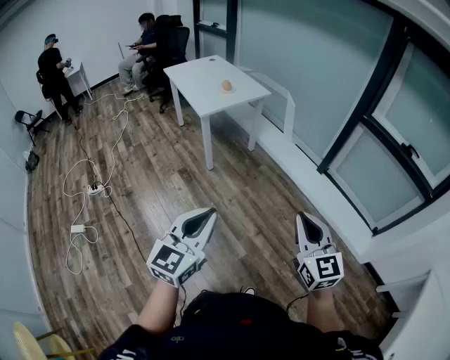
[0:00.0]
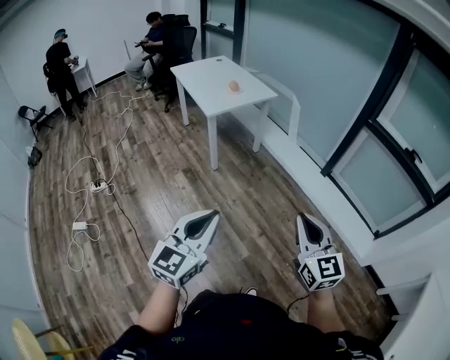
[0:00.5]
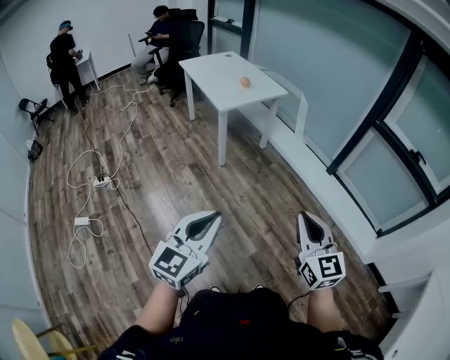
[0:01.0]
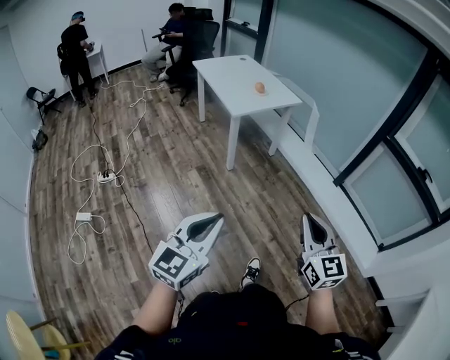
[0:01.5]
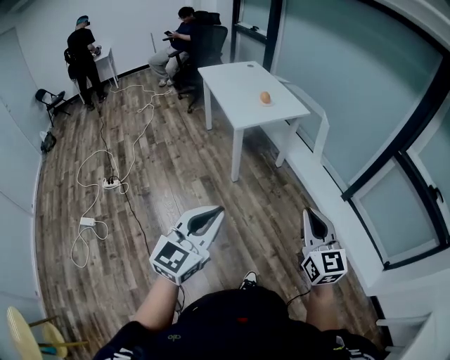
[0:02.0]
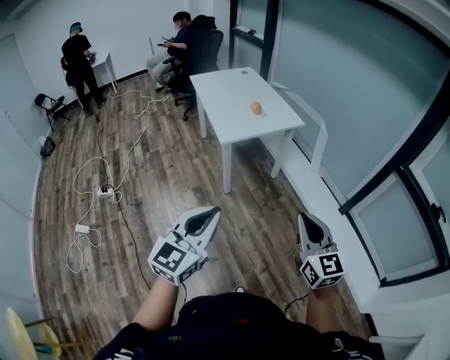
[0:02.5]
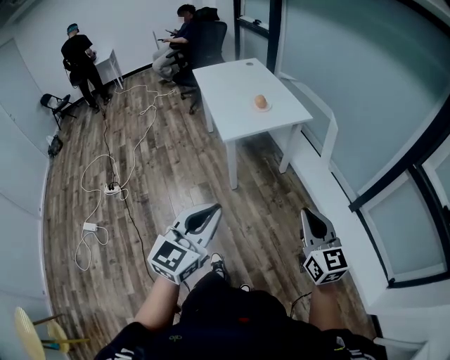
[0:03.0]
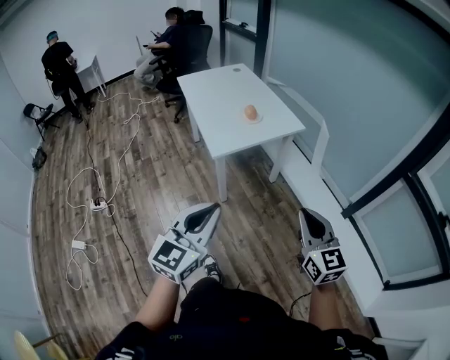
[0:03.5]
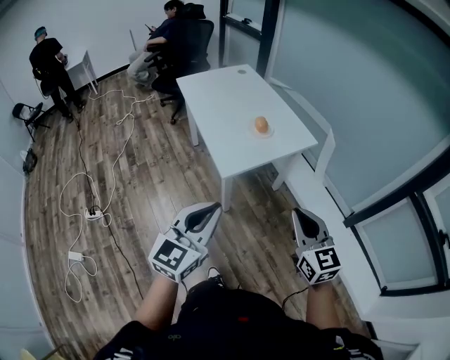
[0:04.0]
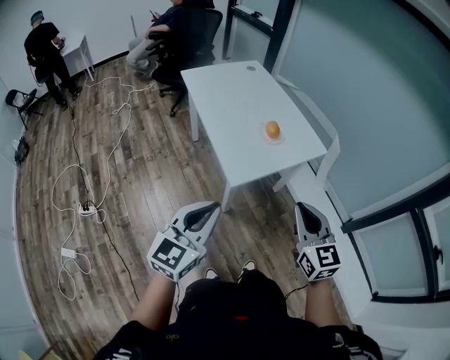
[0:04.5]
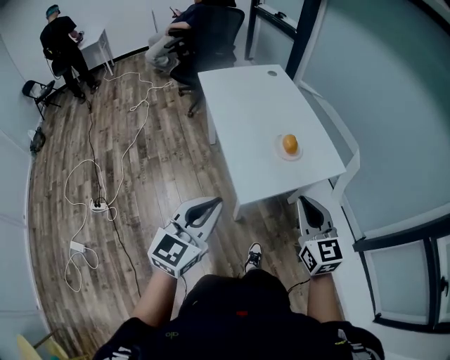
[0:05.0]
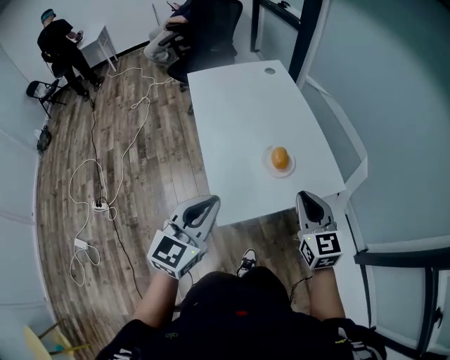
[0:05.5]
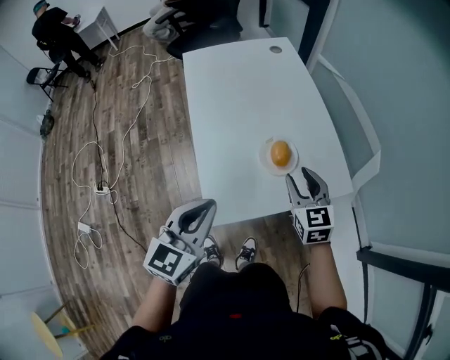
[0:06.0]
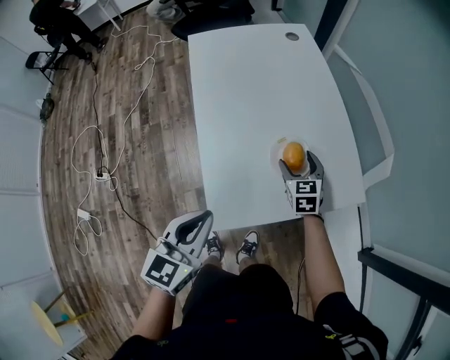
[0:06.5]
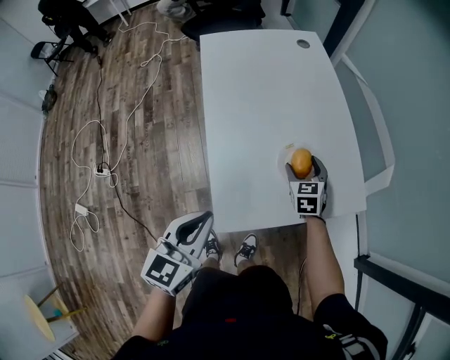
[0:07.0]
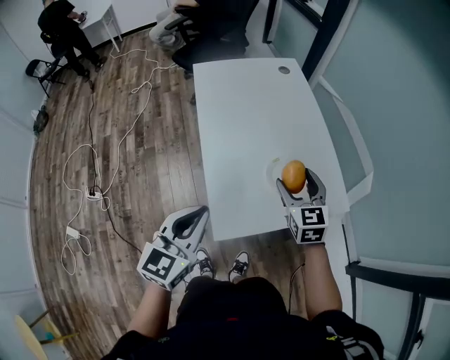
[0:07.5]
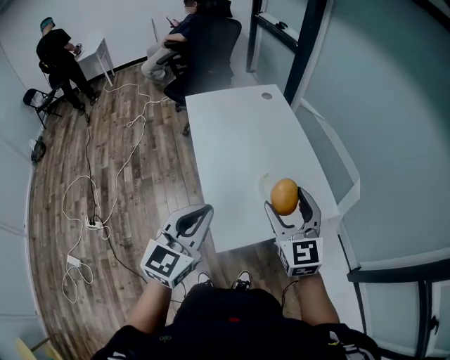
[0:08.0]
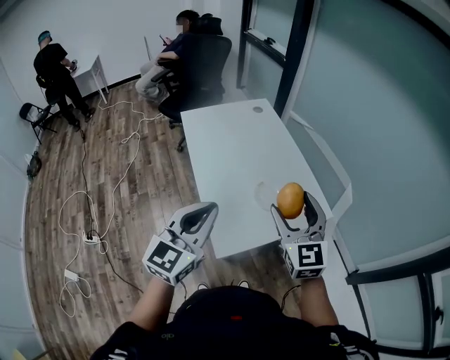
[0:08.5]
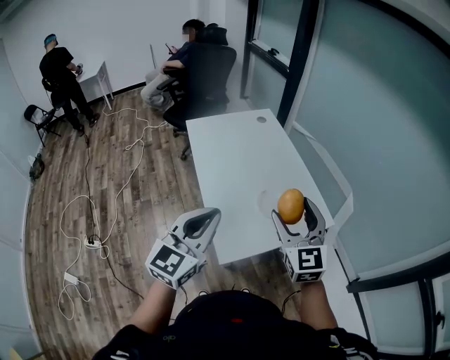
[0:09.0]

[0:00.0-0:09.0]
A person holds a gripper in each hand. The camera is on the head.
0:00.0 to 0:02.0: The left gripper goes some 15 cm to the left and forward. The right gripper heads forward and to the left, covering roughly 20 cm.
0:02.0 to 0:04.5: The pair of grippers is taken forward, about 60 cm.
0:04.5 to 0:07.0: The right gripper shifts some 60 cm forward and downward, rotates approximately 30 degrees, and opens. The left gripper goes some 35 cm forward, and changes its angle by approximately 30 degrees.
0:07.0 to 0:09.0: The left gripper shifts approximately 20 cm upward, and changes its angle by some 30 degrees. Meanwhile the right gripper moves upward and backward, approximately 40 cm, and points its fingers about 30 degrees further upward.

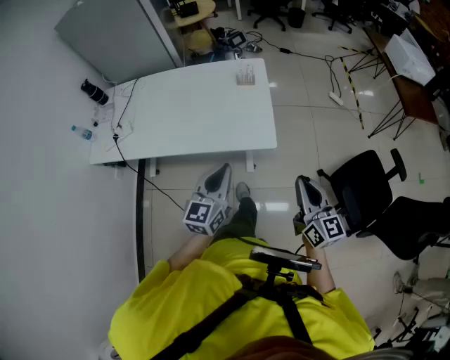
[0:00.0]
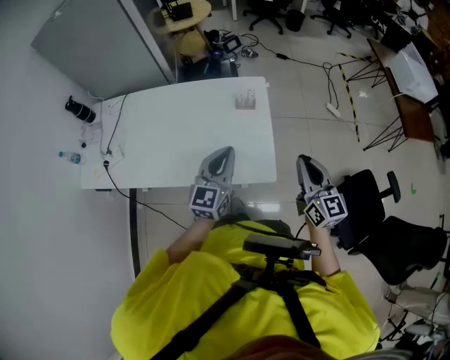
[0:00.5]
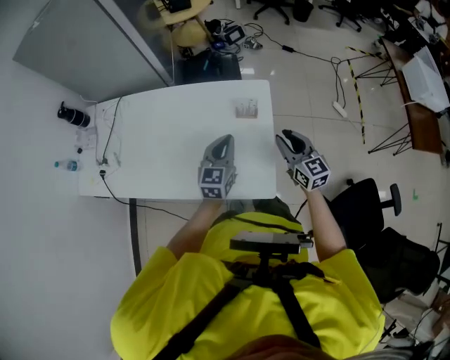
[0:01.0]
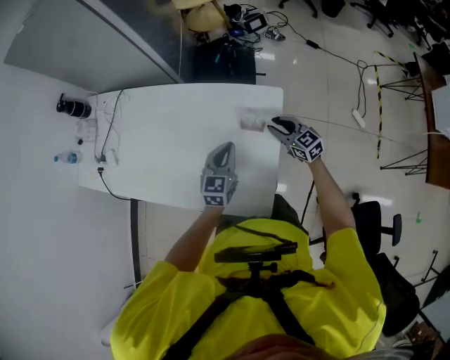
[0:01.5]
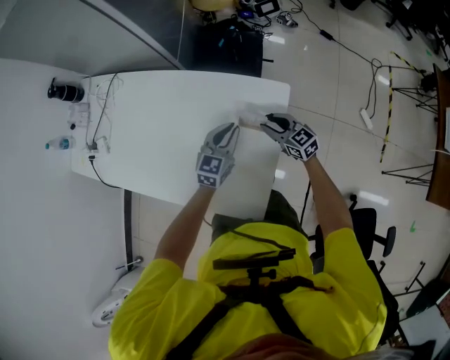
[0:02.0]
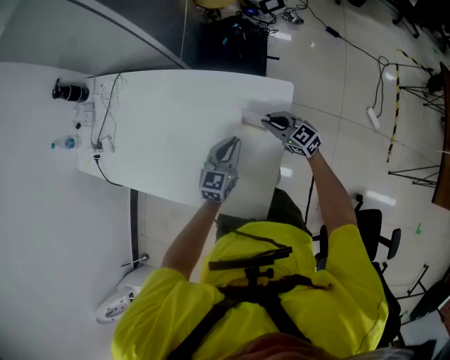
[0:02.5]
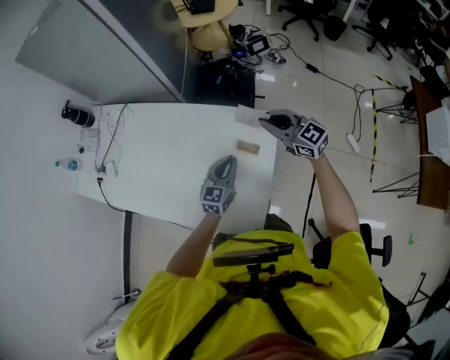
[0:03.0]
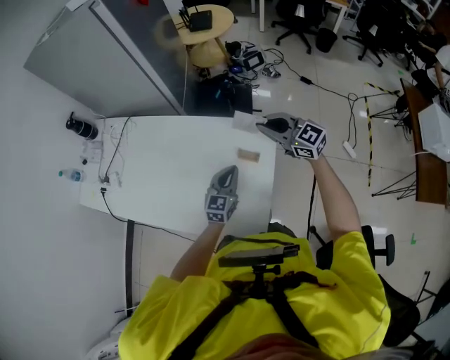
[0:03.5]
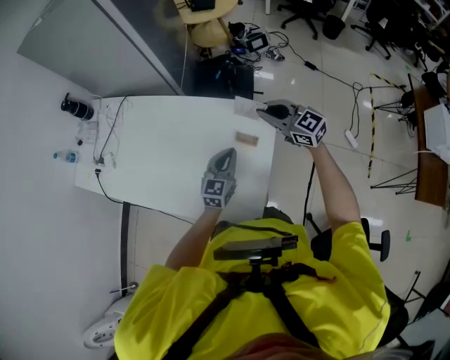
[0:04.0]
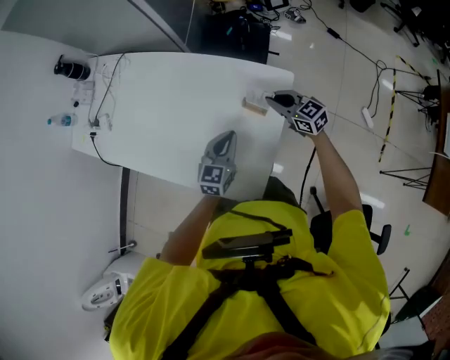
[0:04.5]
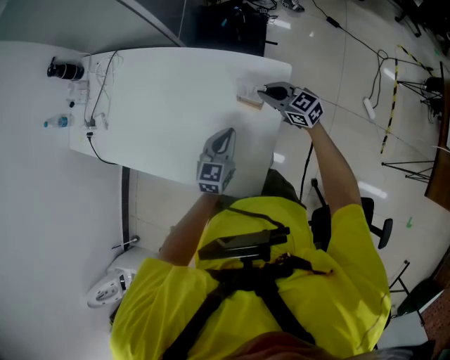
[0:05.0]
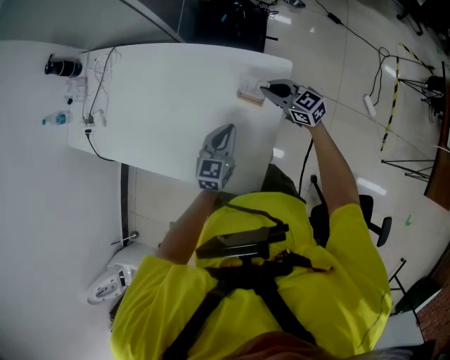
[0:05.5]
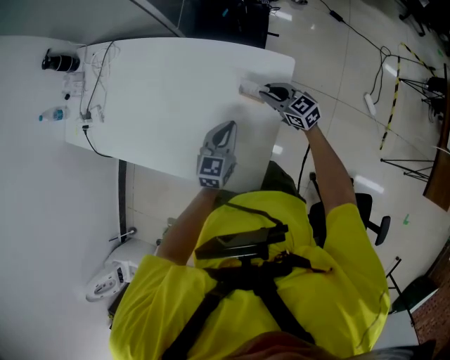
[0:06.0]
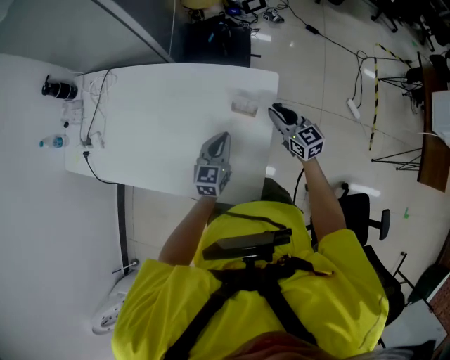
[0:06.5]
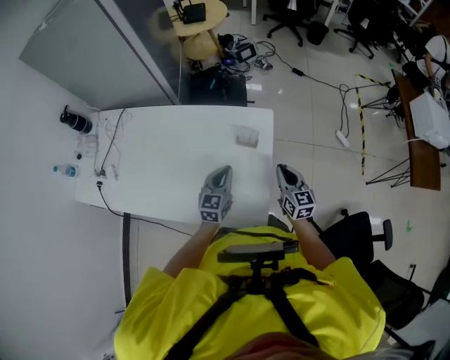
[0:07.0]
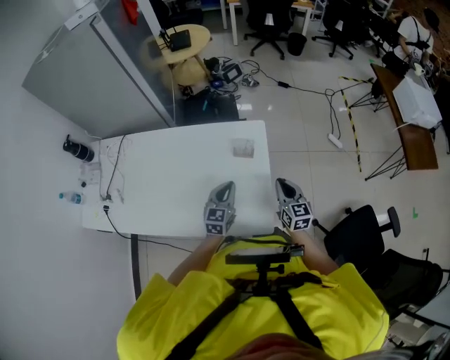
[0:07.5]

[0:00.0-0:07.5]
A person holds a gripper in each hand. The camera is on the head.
0:00.0 to 0:02.0: The two grippers travel together, about 60 cm. The right gripper rotates approximately 50 degrees, and opens its fingers.
0:02.0 to 0:04.0: The right gripper goes roughly 25 cm upward, and closes its fingers, while the left gripper heads upward and backward, covering roughly 10 cm.
0:04.0 to 0:05.5: The left gripper shifts about 5 cm downward. Meanwhile the right gripper shifts about 20 cm downward.
0:05.5 to 0:07.5: The left gripper changes place by approximately 10 cm; the right gripper moves approximately 25 cm, and rotates some 60 degrees.

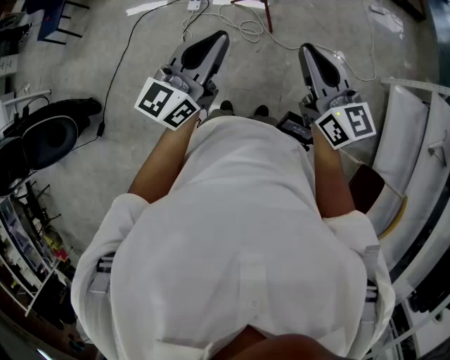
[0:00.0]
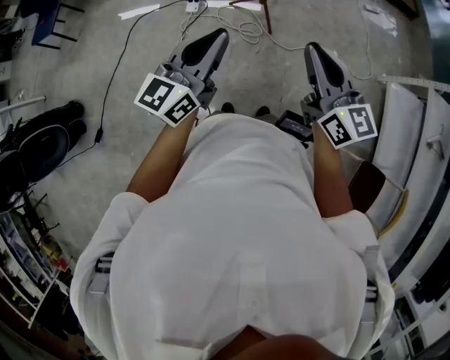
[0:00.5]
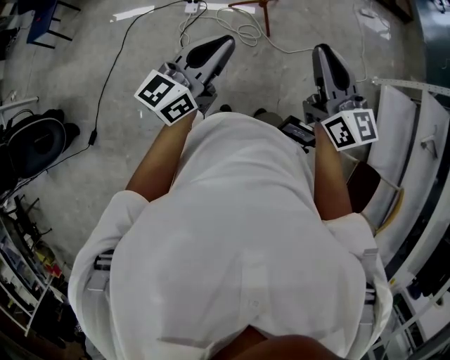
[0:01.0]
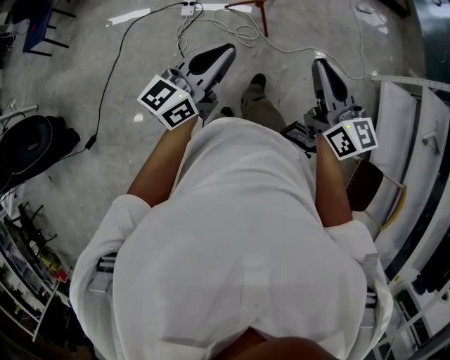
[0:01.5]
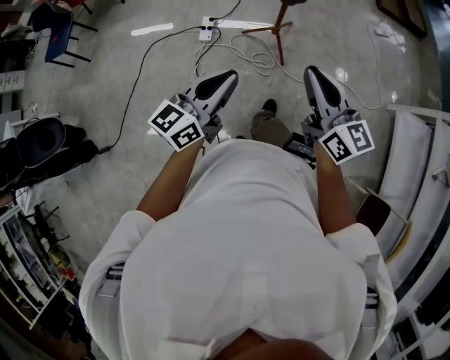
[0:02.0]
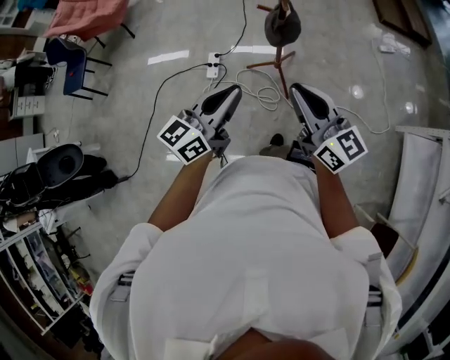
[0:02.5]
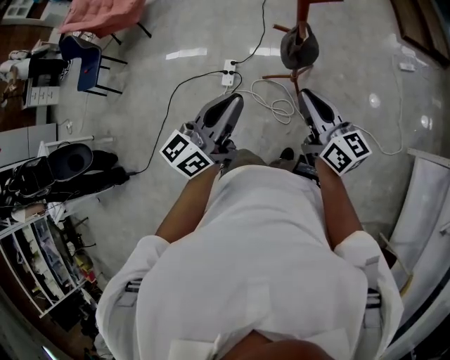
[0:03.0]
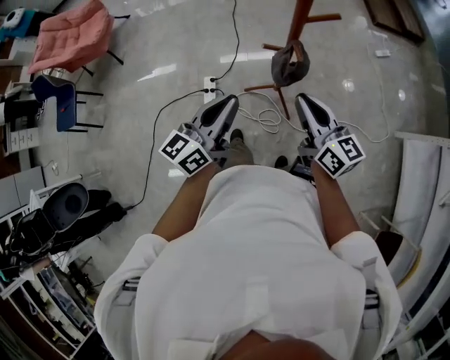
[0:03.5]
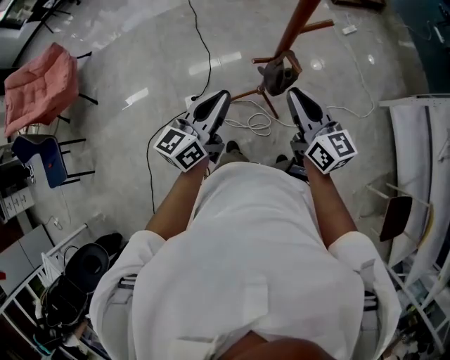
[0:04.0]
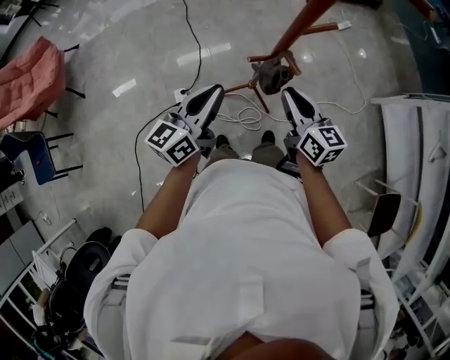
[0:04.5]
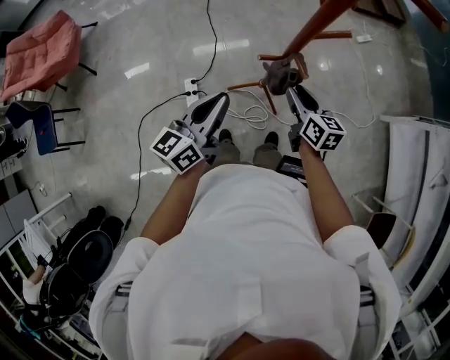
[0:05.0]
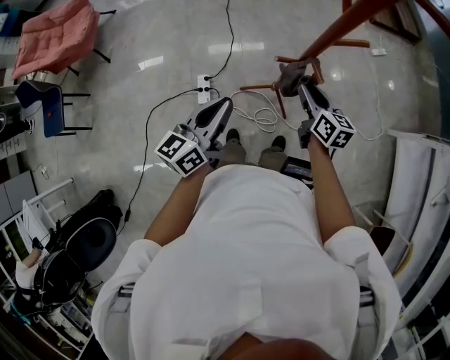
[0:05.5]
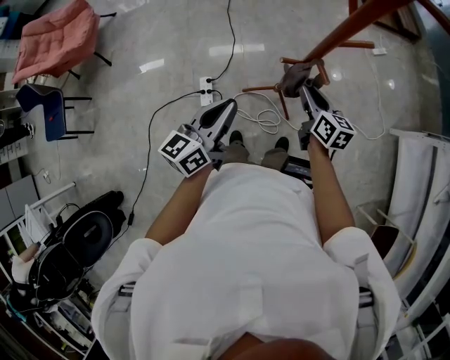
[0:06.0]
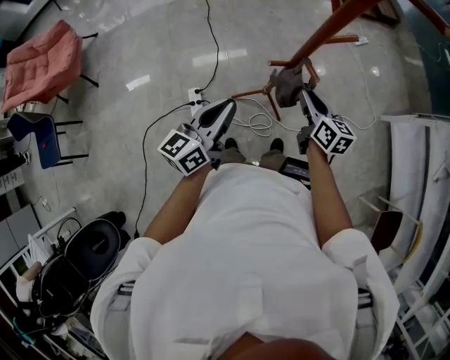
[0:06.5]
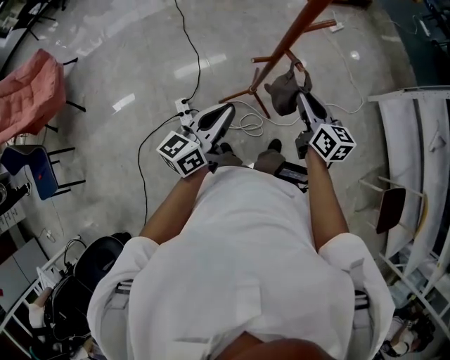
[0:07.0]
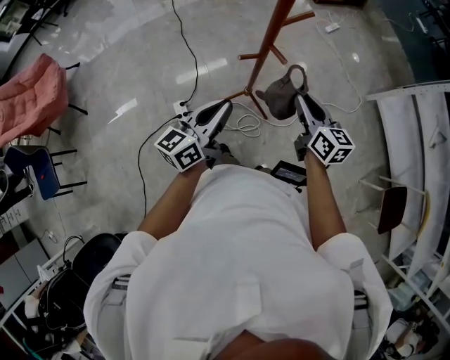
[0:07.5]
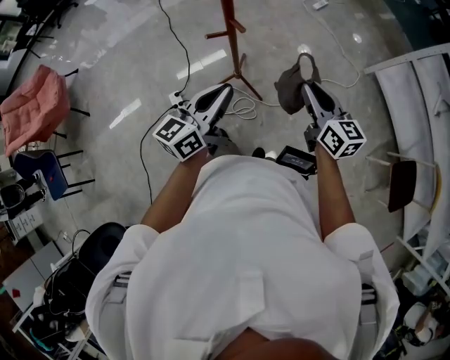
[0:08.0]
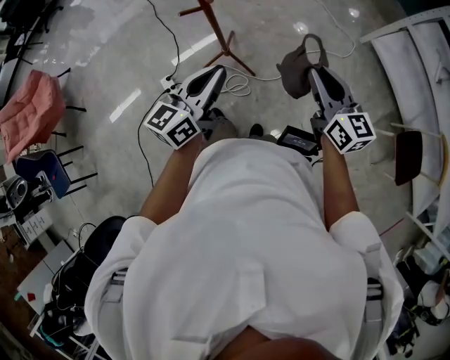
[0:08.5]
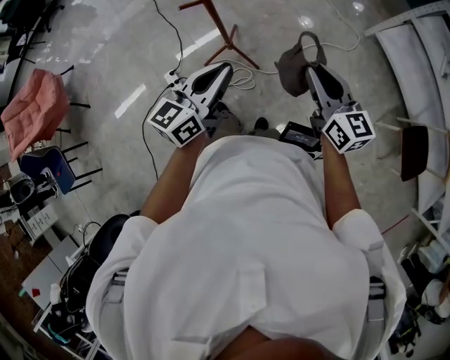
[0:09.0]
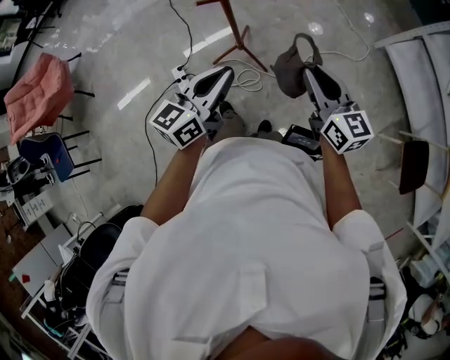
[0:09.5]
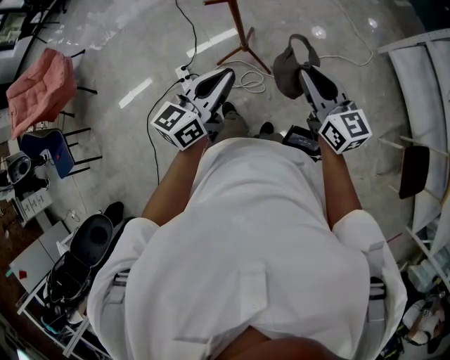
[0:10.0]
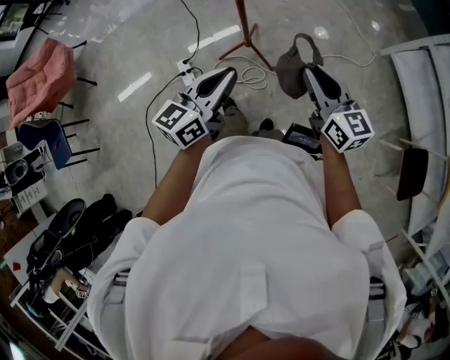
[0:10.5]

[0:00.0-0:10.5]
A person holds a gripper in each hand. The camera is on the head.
0:00.0 to 0:02.0: The right gripper moves forward and to the left, about 15 cm; the left gripper heads forward, to the left and downward, covering about 15 cm.
0:02.0 to 0:04.0: The grippers both shift forward by roughly 40 cm. The right gripper turns by some 20 degrees.
0:04.0 to 0:06.5: The right gripper moves downward, about 10 cm.
0:06.5 to 0:08.5: The right gripper is displaced to the right, backward and upward by about 35 cm, and swivels some 20 degrees, while the left gripper is displaced to the right by approximately 25 cm.
0:08.5 to 0:10.5: The right gripper moves to the left, approximately 10 cm. Meanwhile the left gripper changes place by about 5 cm.
